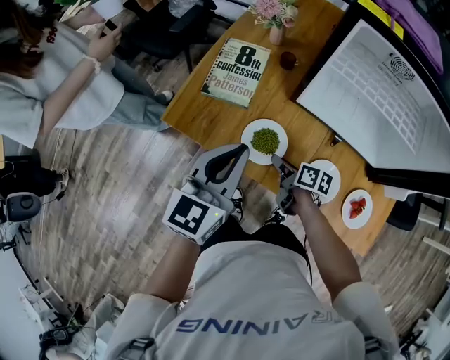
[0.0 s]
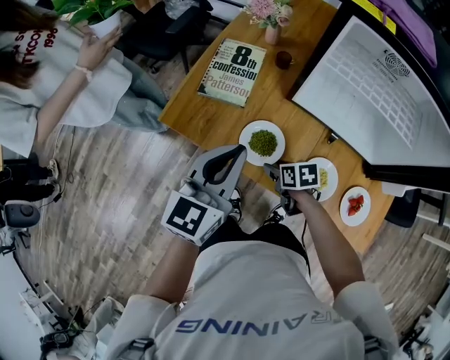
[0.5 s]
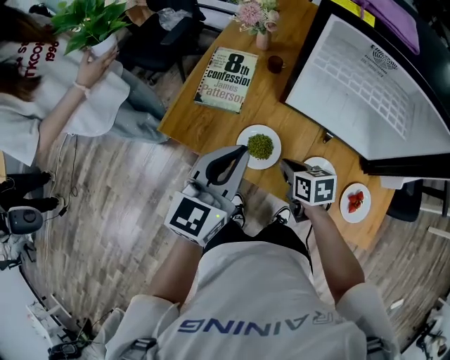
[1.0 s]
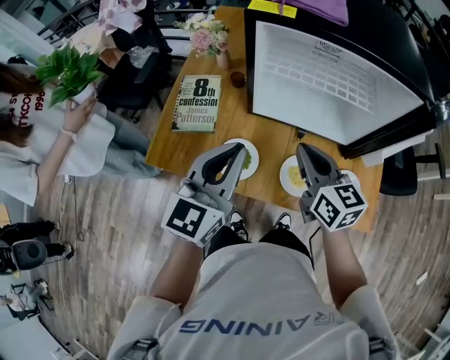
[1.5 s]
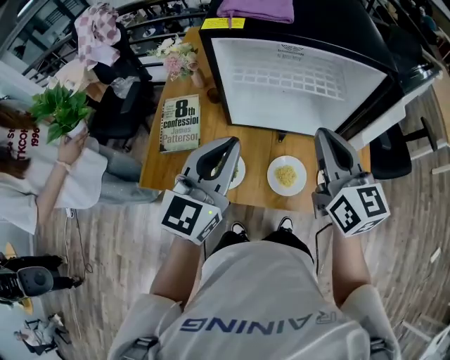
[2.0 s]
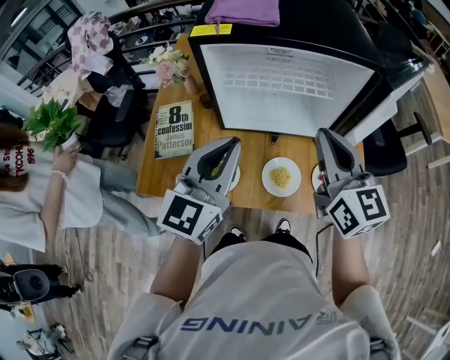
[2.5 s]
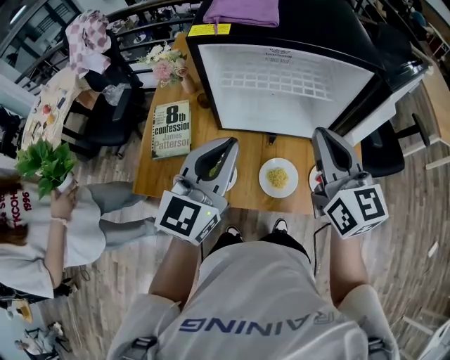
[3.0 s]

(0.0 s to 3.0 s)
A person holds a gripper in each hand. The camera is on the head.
0.0 s - 1.5 s: The left gripper moves some 10 cm; the right gripper goes approximately 25 cm upward, changes its angle by approximately 50 degrees, and closes.
1.5 s - 3.0 s: The left gripper moves to the right, roughly 5 cm. The right gripper travels upward and to the right by about 15 cm, and changes its angle by some 20 degrees.

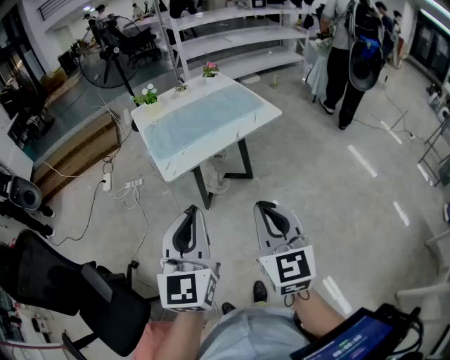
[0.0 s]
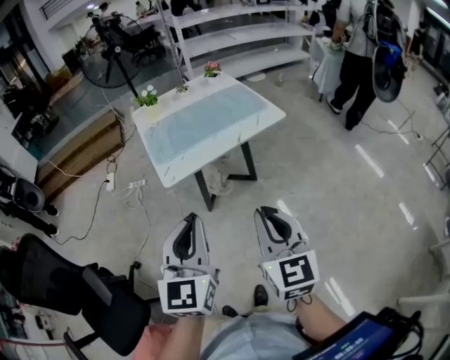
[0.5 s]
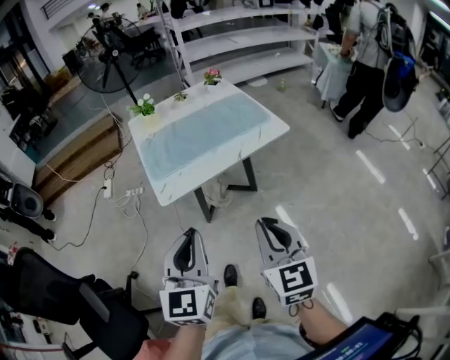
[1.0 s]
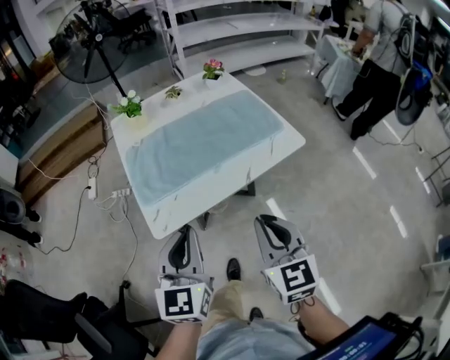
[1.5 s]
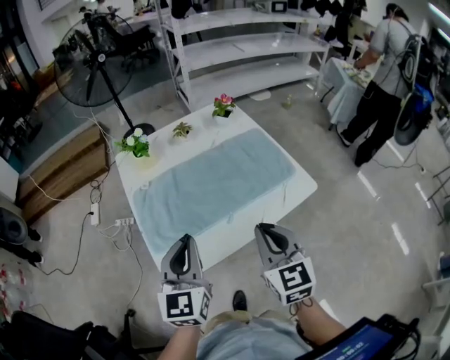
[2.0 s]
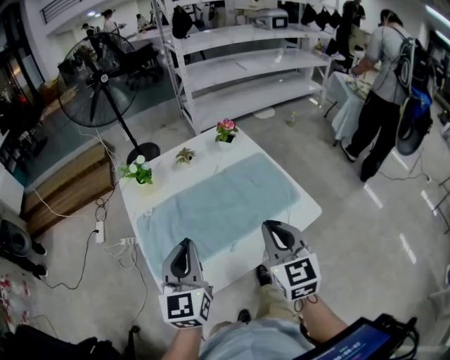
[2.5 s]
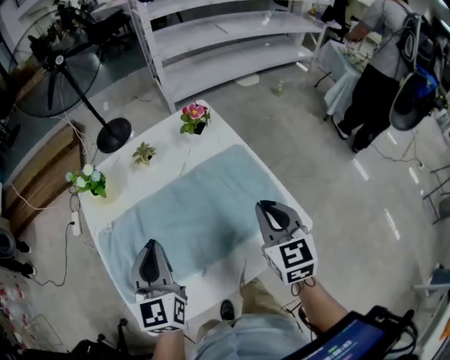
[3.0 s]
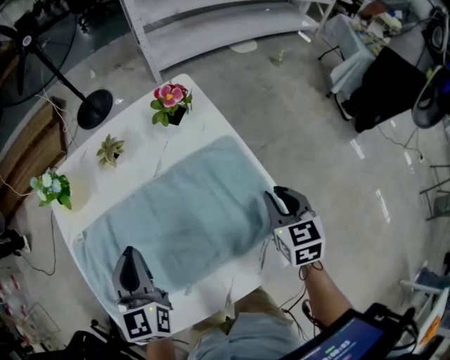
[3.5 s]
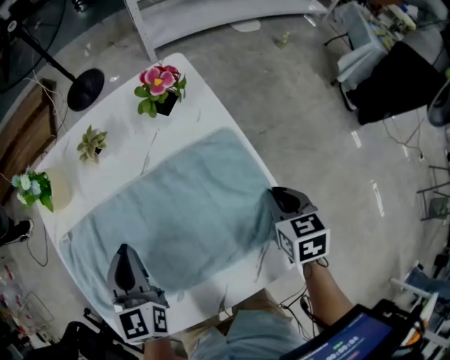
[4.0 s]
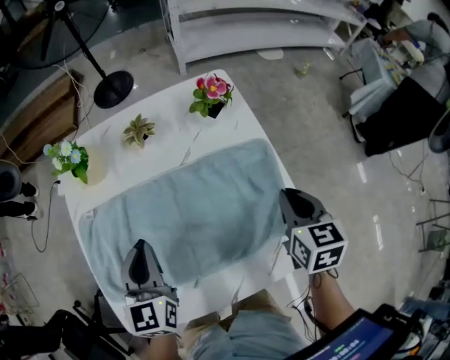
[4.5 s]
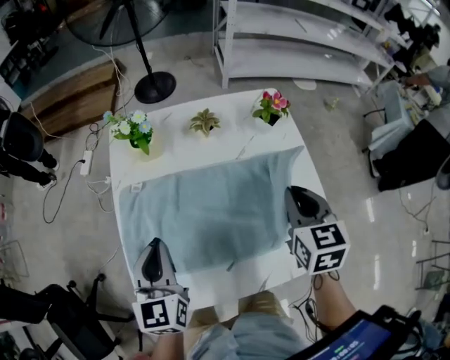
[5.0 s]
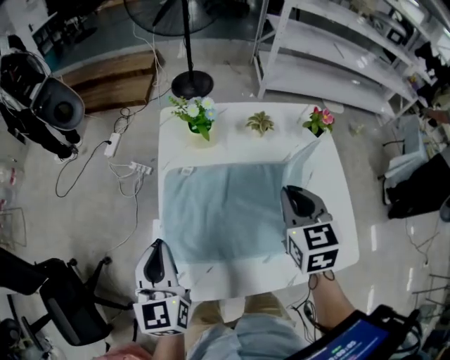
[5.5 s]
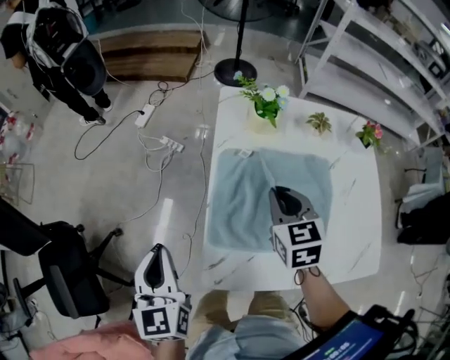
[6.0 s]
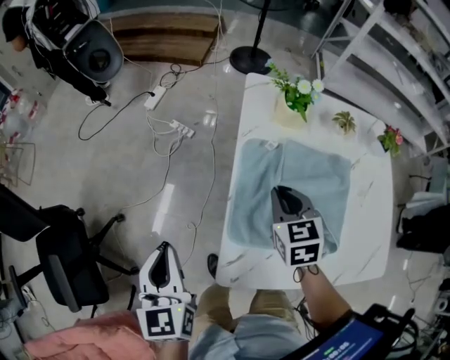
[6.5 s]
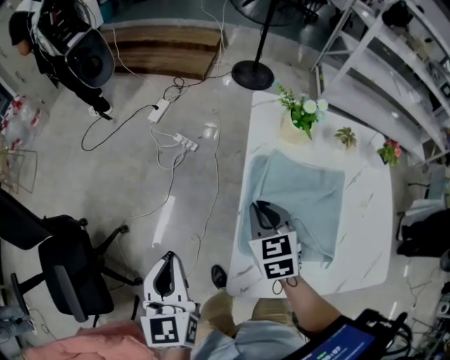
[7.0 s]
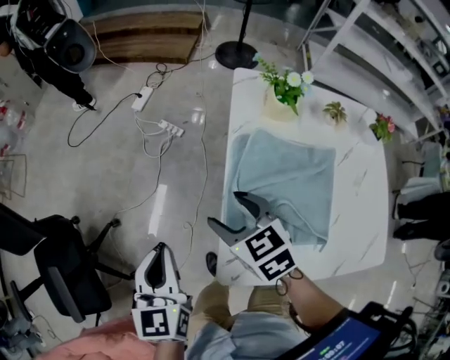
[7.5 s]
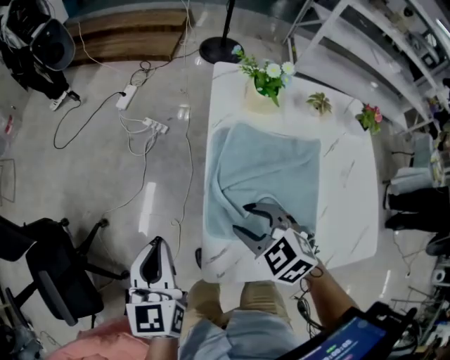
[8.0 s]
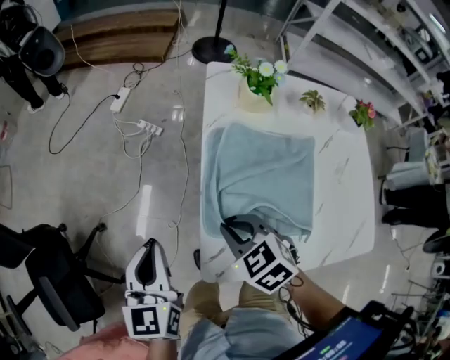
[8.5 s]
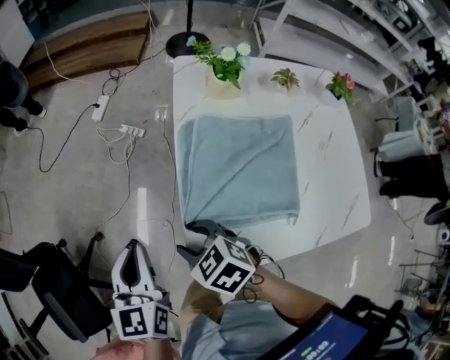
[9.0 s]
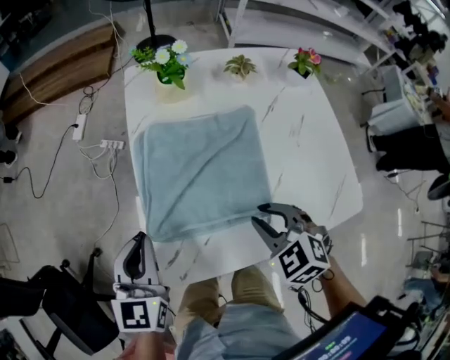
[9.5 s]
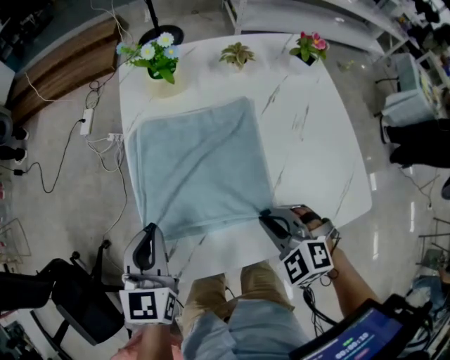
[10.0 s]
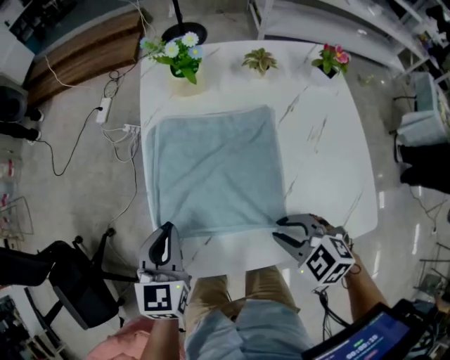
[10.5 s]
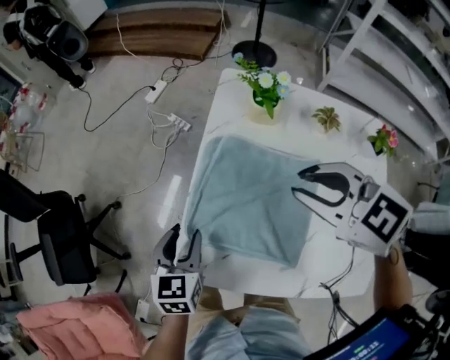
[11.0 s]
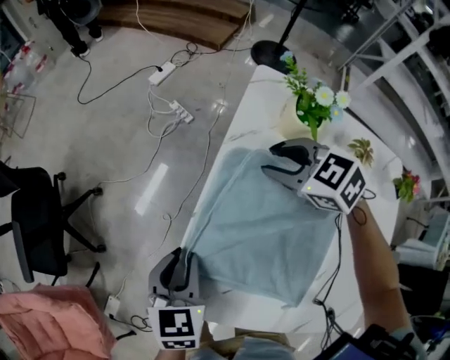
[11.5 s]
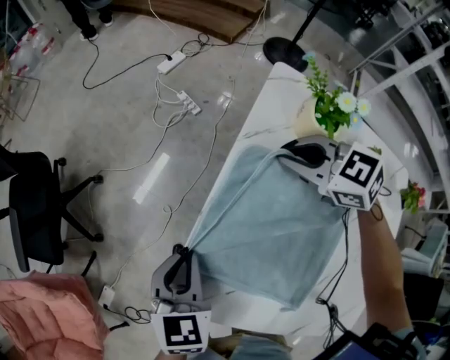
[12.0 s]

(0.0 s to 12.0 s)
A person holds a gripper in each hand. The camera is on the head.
0.0 s - 2.0 s: Both grippers are carried forward, roughly 40 cm.
2.0 s - 4.0 s: The right gripper moves forward, to the right and downward, about 50 cm, and points its fingers approximately 30 degrees further downward. The left gripper goes approximately 30 cm forward and downward, and changes its angle by about 20 degrees.
4.0 s - 6.0 s: The two grippers travel together, about 50 cm. The right gripper swivels roughly 40 degrees, while the left gripper swivels roughly 30 degrees.
6.0 s - 8.0 s: The right gripper shifts some 15 cm to the left, backward and downward, changes its angle by about 40 degrees, and opens up.
8.0 s - 10.0 s: The left gripper moves some 15 cm, and swivels roughly 20 degrees, while the right gripper changes place by approximately 20 cm, and closes.
10.0 s - 12.0 s: The right gripper goes upward and returns, roughly 20 cm each way, and swivels about 40 degrees; the left gripper travels downward by approximately 5 cm, turns by about 40 degrees, and opens, then closes once more.

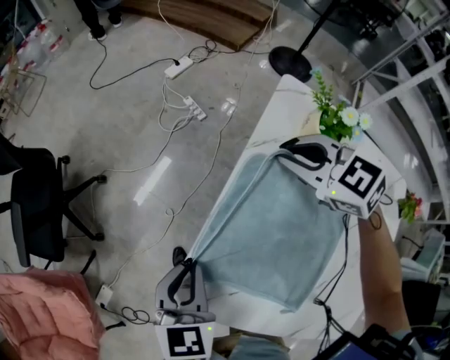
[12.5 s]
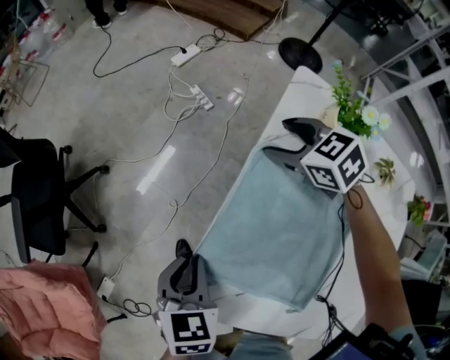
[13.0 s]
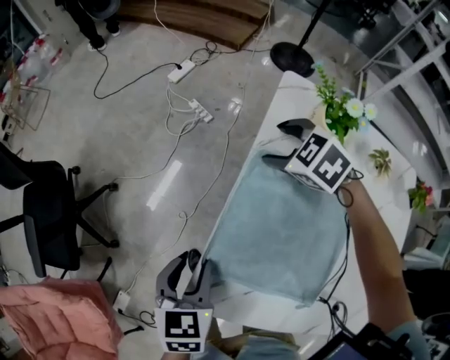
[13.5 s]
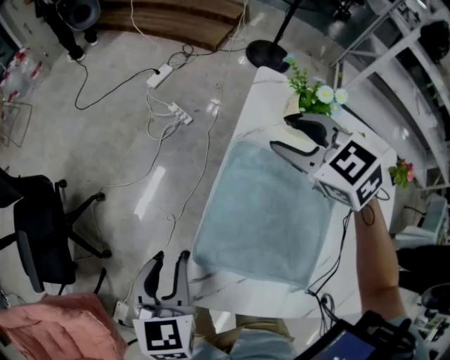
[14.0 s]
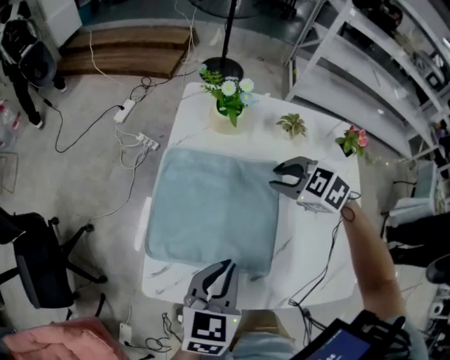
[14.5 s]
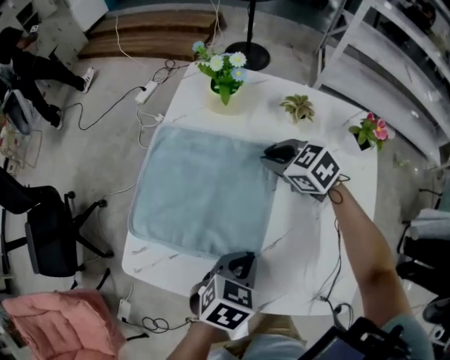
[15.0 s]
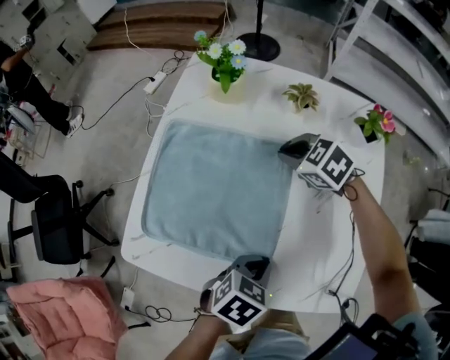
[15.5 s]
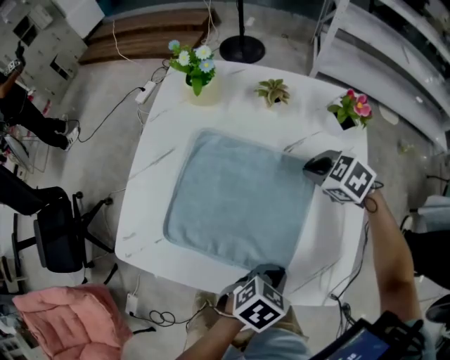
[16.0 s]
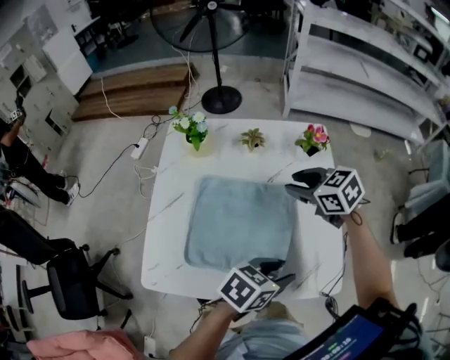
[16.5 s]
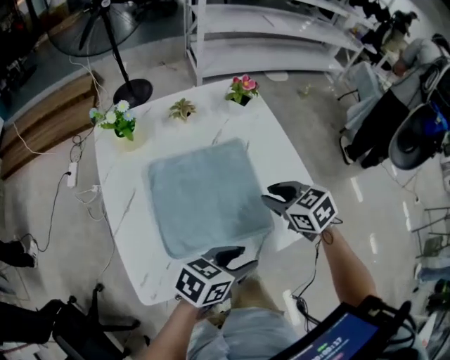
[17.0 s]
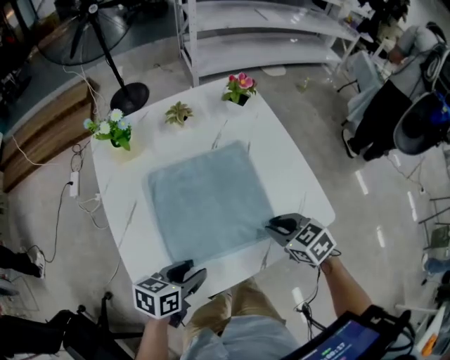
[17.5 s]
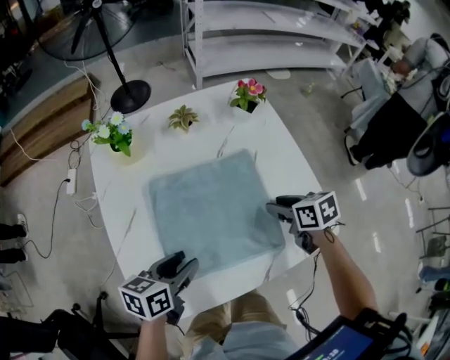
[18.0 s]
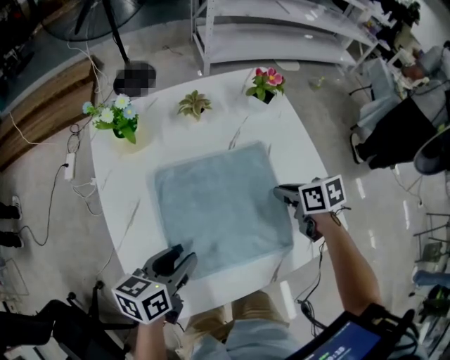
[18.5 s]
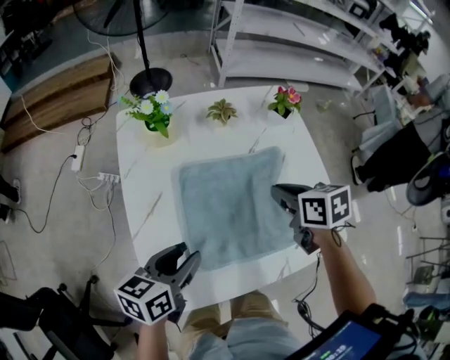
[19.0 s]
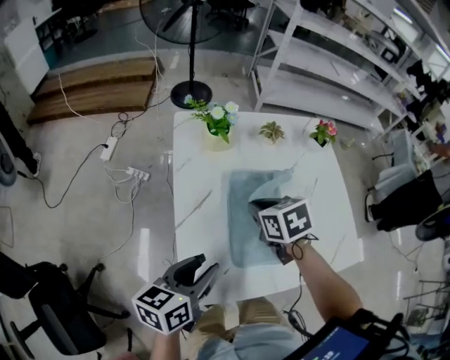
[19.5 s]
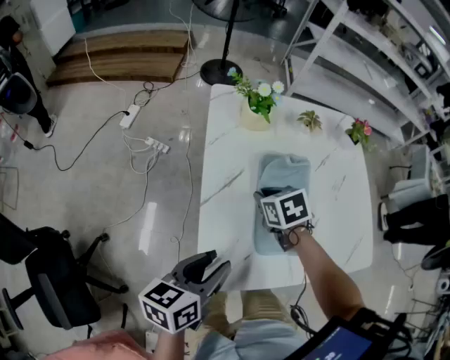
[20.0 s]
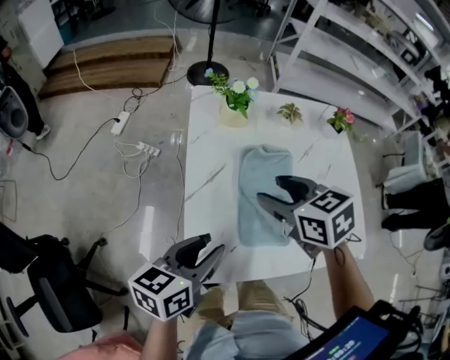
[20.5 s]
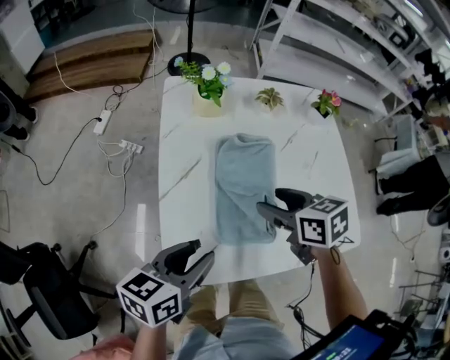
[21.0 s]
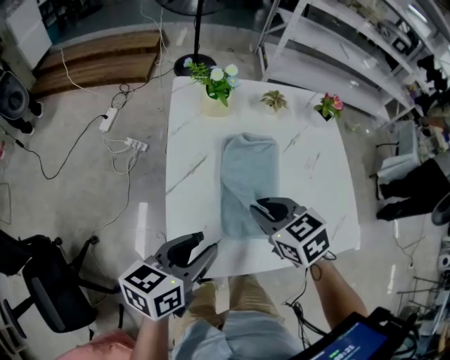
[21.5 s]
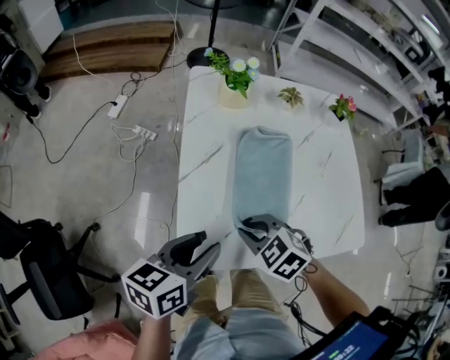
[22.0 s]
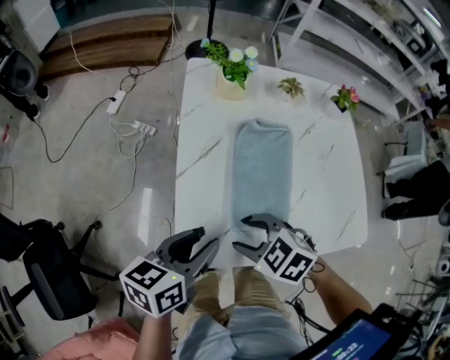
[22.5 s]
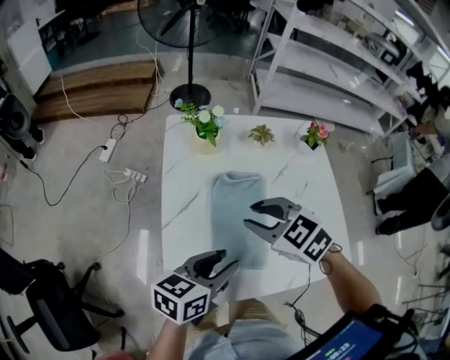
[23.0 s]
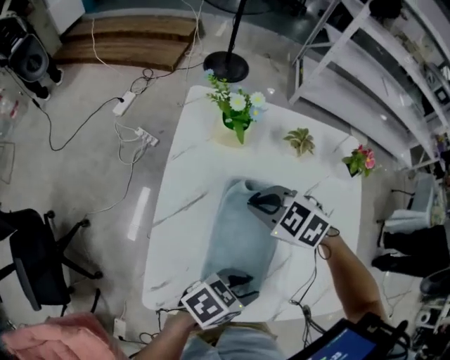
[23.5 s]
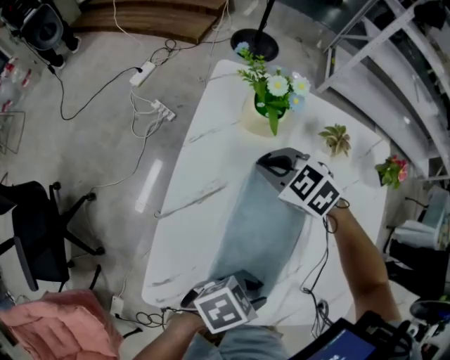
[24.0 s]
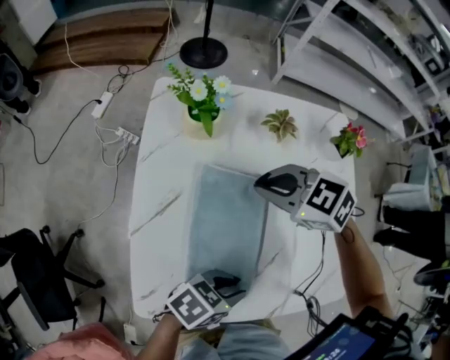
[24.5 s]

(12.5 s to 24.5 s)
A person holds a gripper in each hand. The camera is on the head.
12.5 s - 14.5 s: The left gripper shifts by about 20 cm, changes its angle by some 40 degrees, and opens, then closes again, while the right gripper swings up and down, roughly 10 cm each way, with 2 reversals, changes its angle by about 20 degrees, and opens, then closes once more.
14.5 s - 16.5 s: The left gripper reaches roughly 10 cm downward, then returns, changes its angle by some 40 degrees, and opens up; the right gripper changes place by roughly 20 cm, and turns by about 30 degrees.
16.5 s - 18.5 s: The right gripper is displaced downward by roughly 15 cm, and rotates around the line of its fingers by approximately 50 degrees, clockwise from behind; the left gripper shifts by approximately 25 cm.
18.5 s - 20.5 s: The right gripper shifts approximately 35 cm to the left and upward, changes its angle by roughly 40 degrees, and opens its fingers, while the left gripper is displaced to the left, backward and upward by approximately 15 cm.
20.5 s - 22.5 s: The right gripper travels backward and downward by some 20 cm, rotates some 30 degrees, and closes, then reopens.
22.5 s - 24.5 s: The left gripper shifts by approximately 20 cm, and turns by approximately 40 degrees. The right gripper moves up and down over about 15 cm, changing direction 2 times, and closes its fingers.
